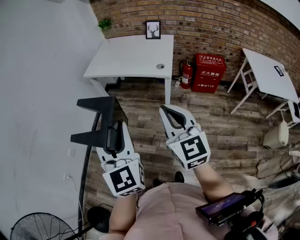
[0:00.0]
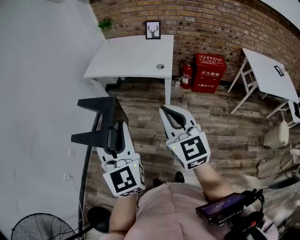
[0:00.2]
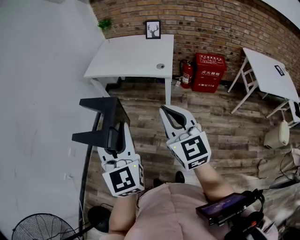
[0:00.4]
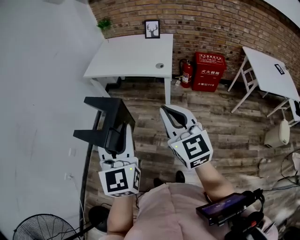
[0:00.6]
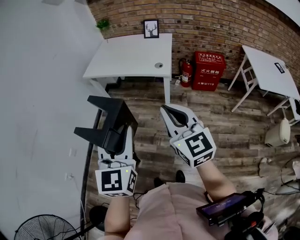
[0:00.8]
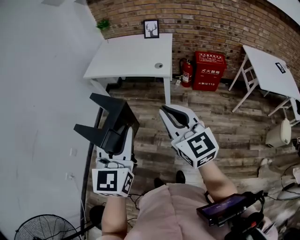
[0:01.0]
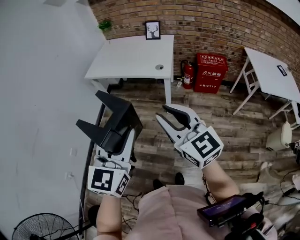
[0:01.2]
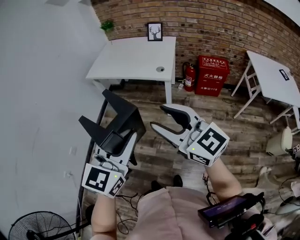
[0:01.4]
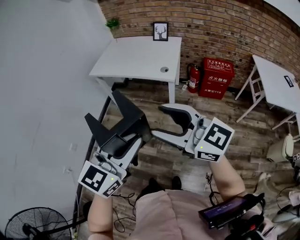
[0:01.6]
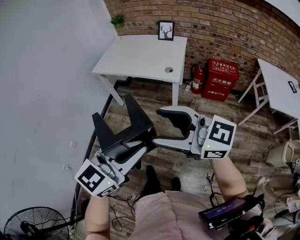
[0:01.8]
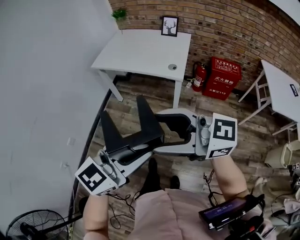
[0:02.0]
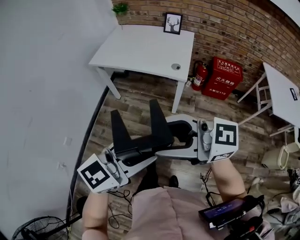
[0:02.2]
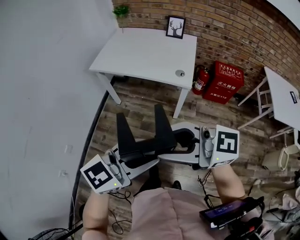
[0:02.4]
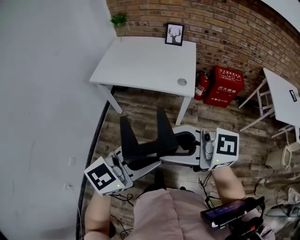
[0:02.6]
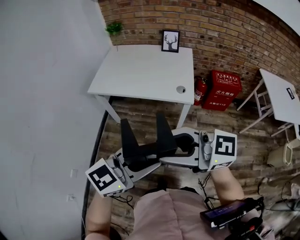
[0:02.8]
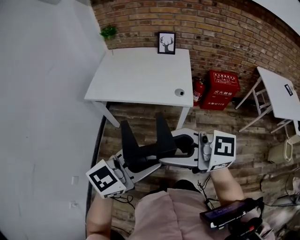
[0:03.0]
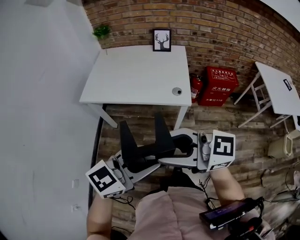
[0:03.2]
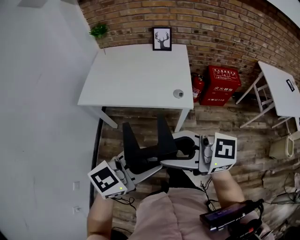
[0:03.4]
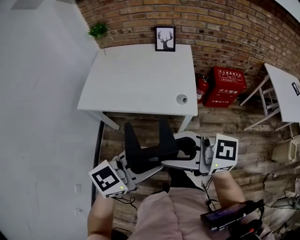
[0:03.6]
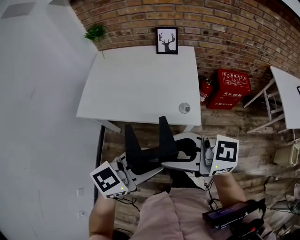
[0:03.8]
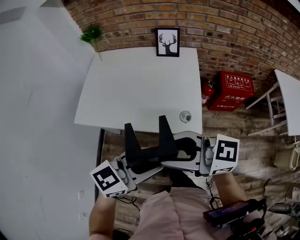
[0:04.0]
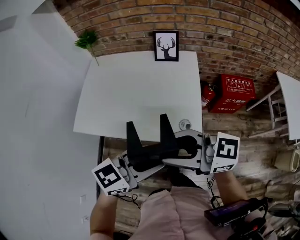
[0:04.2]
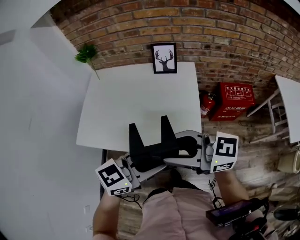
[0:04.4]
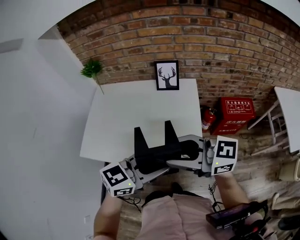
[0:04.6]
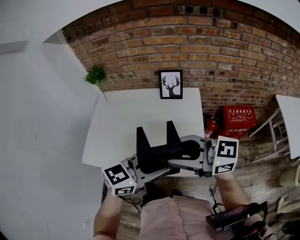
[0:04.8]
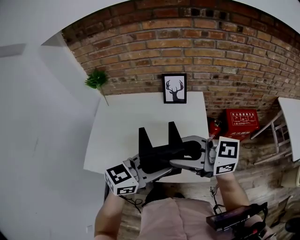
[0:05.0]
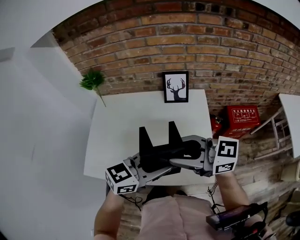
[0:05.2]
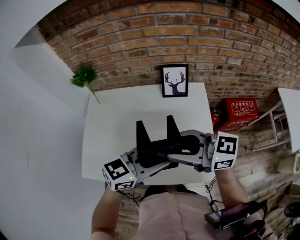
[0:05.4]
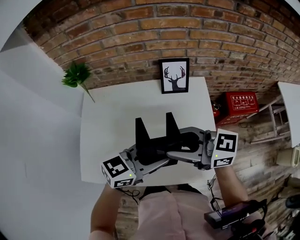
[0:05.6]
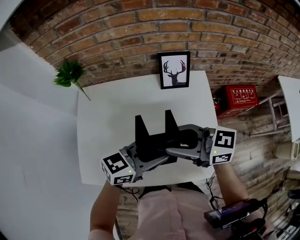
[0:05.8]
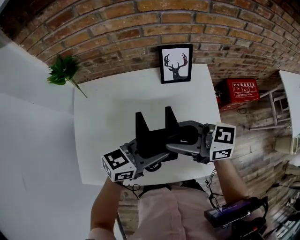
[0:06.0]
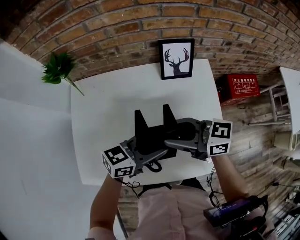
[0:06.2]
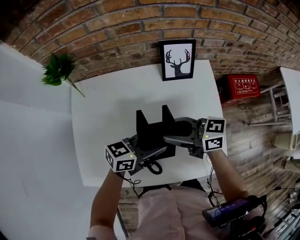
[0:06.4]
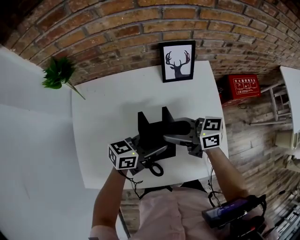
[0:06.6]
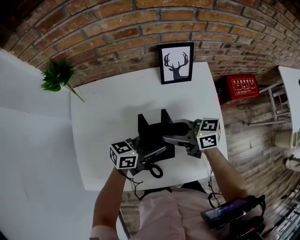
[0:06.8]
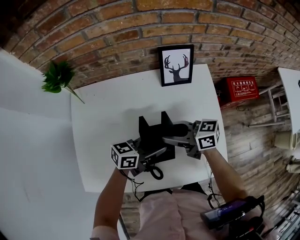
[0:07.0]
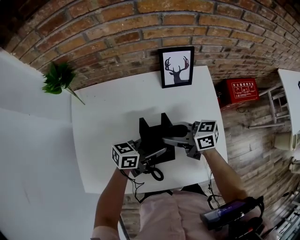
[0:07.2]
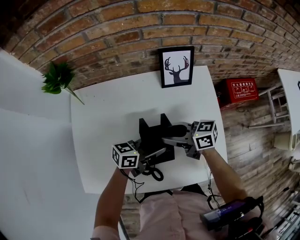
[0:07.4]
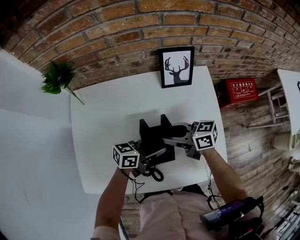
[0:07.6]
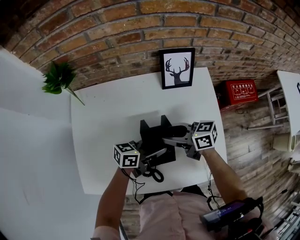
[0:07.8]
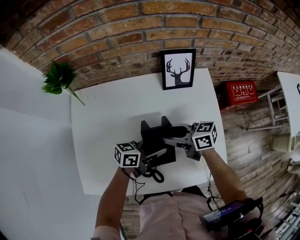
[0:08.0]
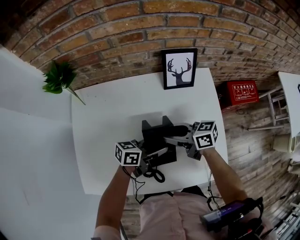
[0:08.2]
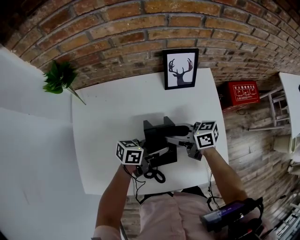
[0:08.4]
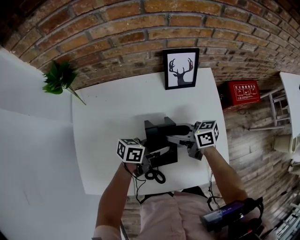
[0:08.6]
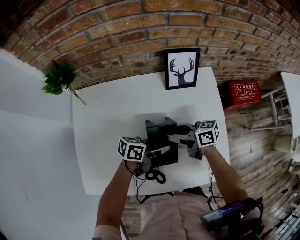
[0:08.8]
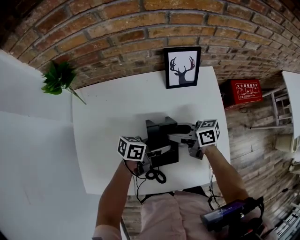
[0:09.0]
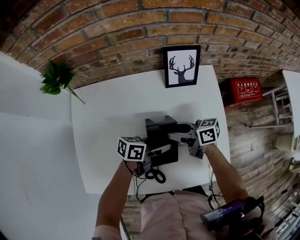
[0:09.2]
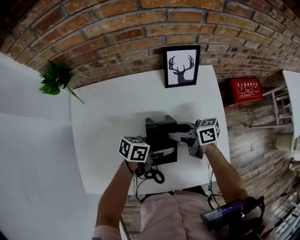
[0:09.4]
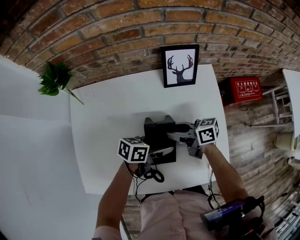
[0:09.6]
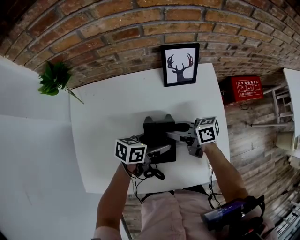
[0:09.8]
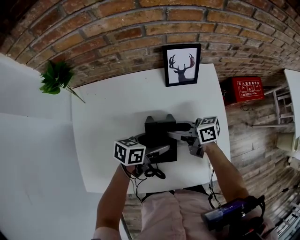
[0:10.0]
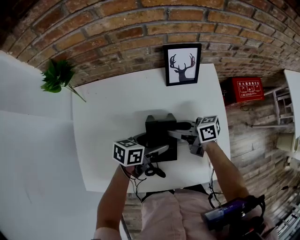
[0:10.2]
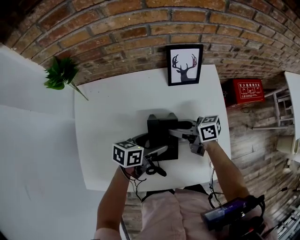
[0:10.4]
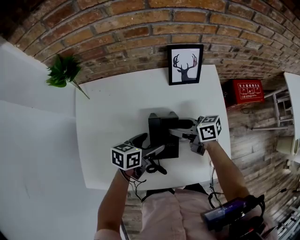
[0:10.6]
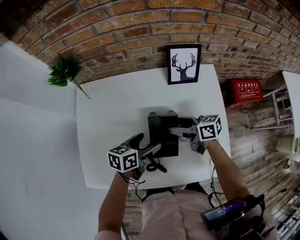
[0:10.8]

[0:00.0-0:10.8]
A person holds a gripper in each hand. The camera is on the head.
0:00.0 to 0:01.6: The right gripper changes place by some 5 cm, swivels about 40 degrees, and opens; the left gripper goes approximately 10 cm to the right, and rotates approximately 40 degrees.
0:01.6 to 0:03.0: The left gripper changes place by some 20 cm, and changes its angle by approximately 30 degrees, while the right gripper moves about 25 cm.
0:03.0 to 0:04.6: The right gripper moves approximately 40 cm; the left gripper changes place by roughly 40 cm.
0:04.6 to 0:06.2: The right gripper changes place by approximately 30 cm, and rotates some 20 degrees; the left gripper shifts by roughly 30 cm, and rotates approximately 20 degrees.
0:06.2 to 0:07.8: Both grippers travel together downward, approximately 10 cm.
0:07.8 to 0:09.2: The grippers stay close to where they were, moving slightly.
0:09.2 to 0:10.8: The left gripper changes place by some 10 cm, turns by some 30 degrees, and opens.

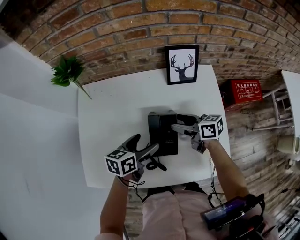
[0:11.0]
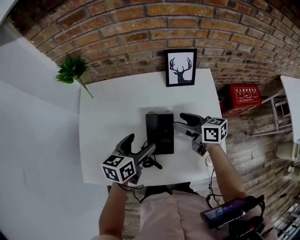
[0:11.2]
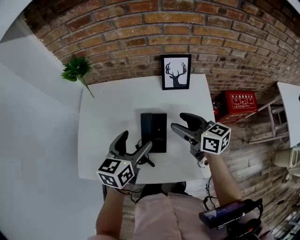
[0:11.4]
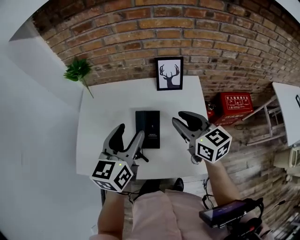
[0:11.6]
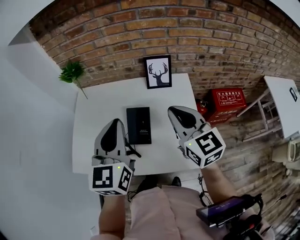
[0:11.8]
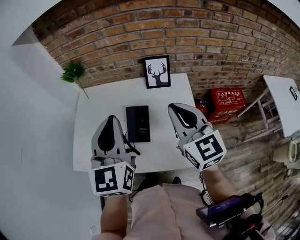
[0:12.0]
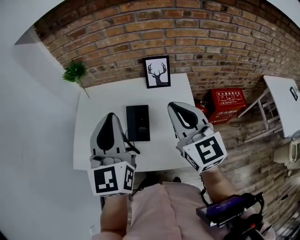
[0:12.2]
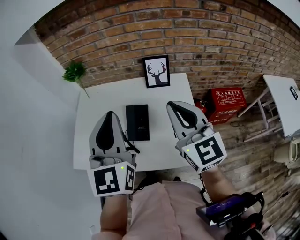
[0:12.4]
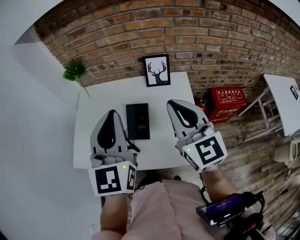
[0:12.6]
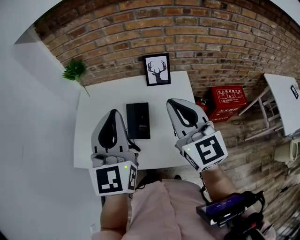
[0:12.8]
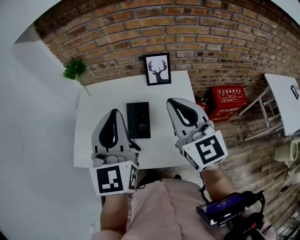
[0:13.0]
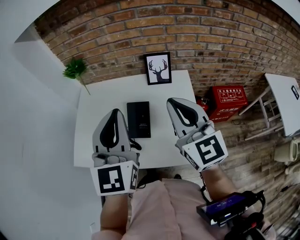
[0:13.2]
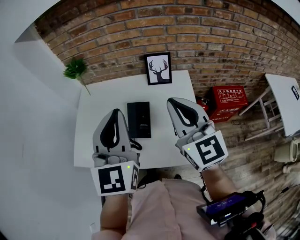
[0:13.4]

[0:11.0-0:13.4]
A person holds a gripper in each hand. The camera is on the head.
0:11.0 to 0:12.2: The right gripper travels upward and backward by some 35 cm, swivels some 60 degrees, and closes its fingers; the left gripper goes about 35 cm upward, tilts its fingers about 30 degrees upward, and closes its fingers.
0:12.2 to 0:13.4: There are only small adjustments of the grippers.

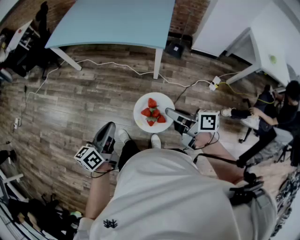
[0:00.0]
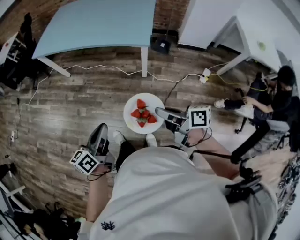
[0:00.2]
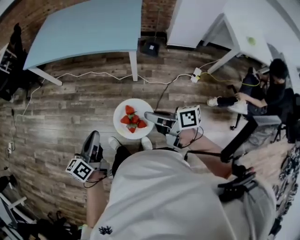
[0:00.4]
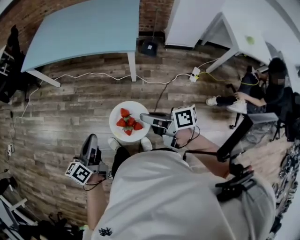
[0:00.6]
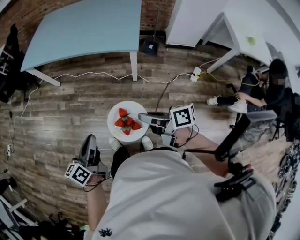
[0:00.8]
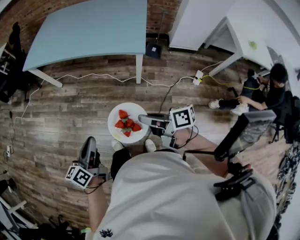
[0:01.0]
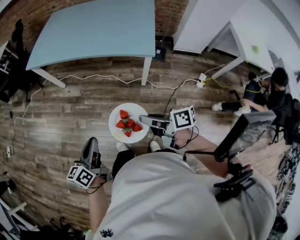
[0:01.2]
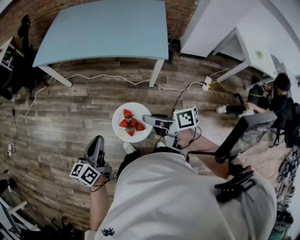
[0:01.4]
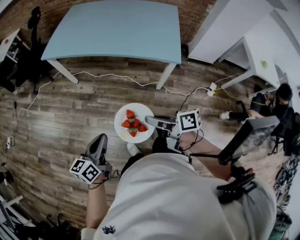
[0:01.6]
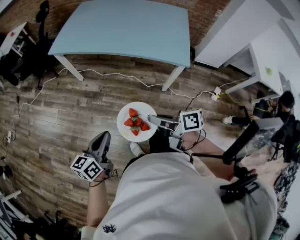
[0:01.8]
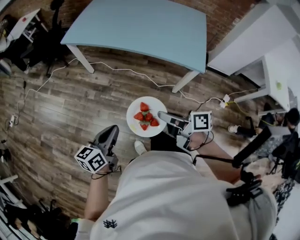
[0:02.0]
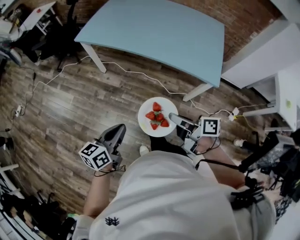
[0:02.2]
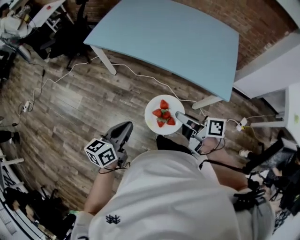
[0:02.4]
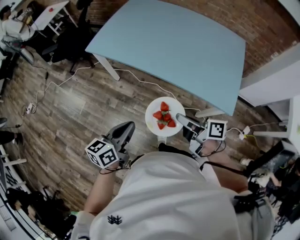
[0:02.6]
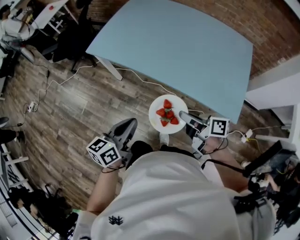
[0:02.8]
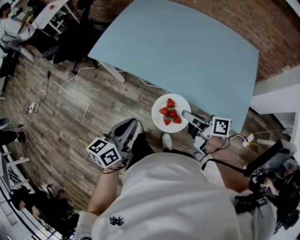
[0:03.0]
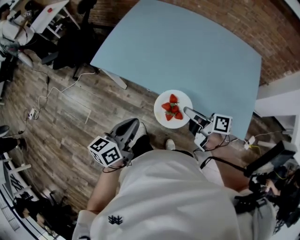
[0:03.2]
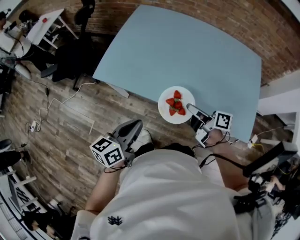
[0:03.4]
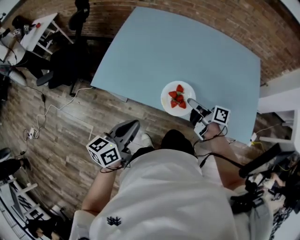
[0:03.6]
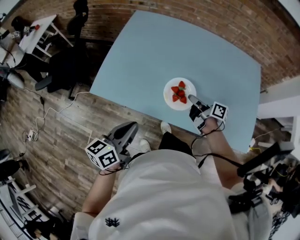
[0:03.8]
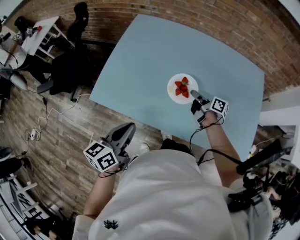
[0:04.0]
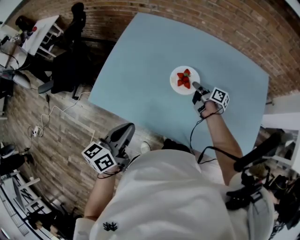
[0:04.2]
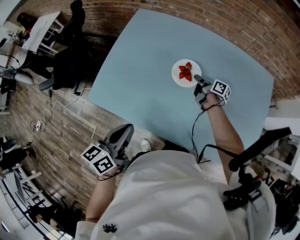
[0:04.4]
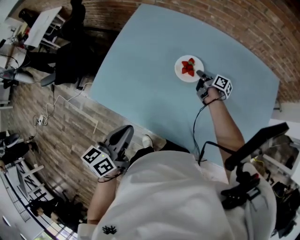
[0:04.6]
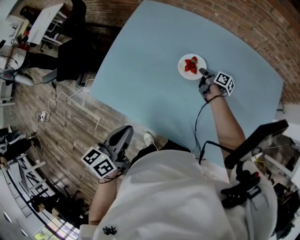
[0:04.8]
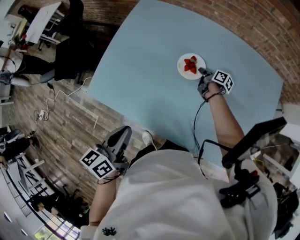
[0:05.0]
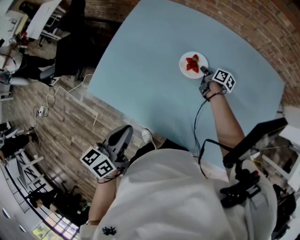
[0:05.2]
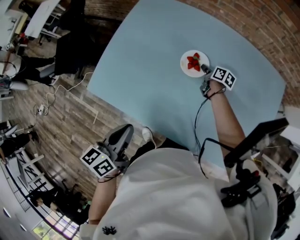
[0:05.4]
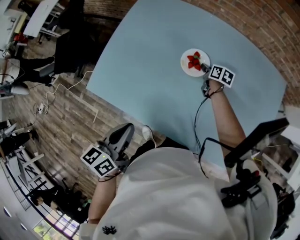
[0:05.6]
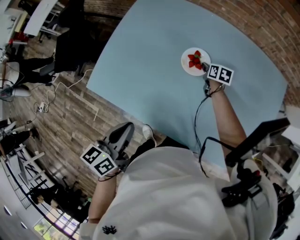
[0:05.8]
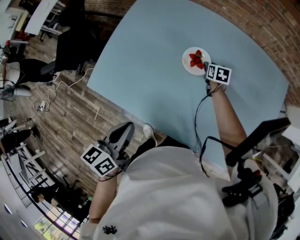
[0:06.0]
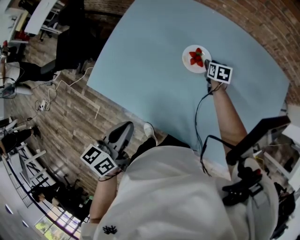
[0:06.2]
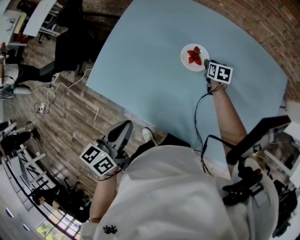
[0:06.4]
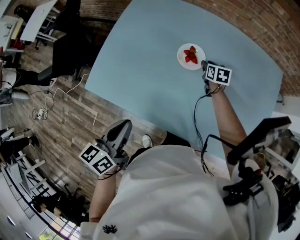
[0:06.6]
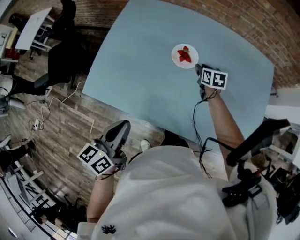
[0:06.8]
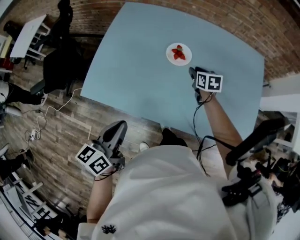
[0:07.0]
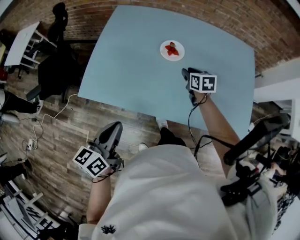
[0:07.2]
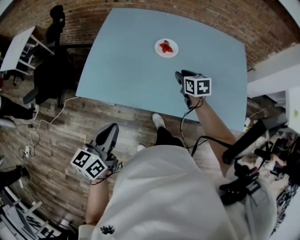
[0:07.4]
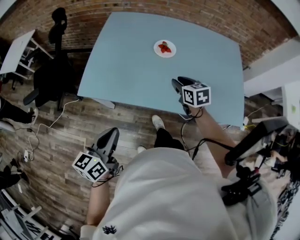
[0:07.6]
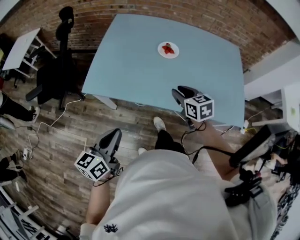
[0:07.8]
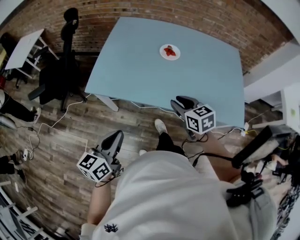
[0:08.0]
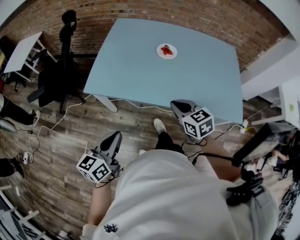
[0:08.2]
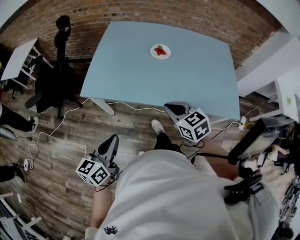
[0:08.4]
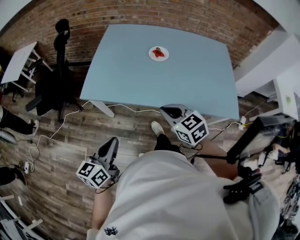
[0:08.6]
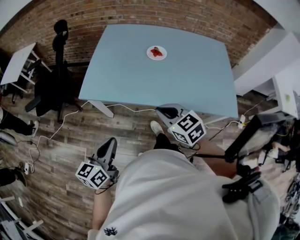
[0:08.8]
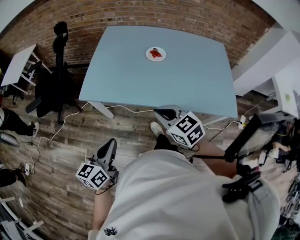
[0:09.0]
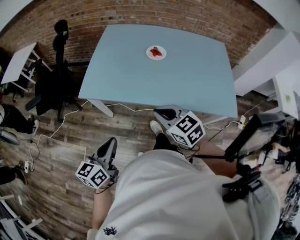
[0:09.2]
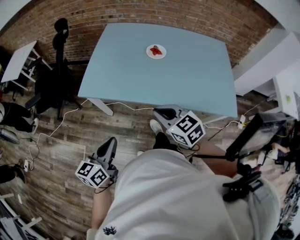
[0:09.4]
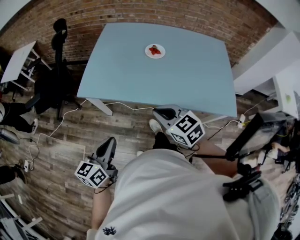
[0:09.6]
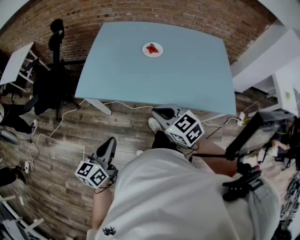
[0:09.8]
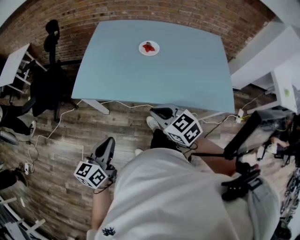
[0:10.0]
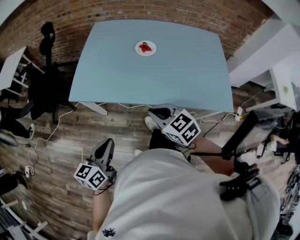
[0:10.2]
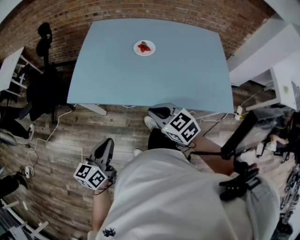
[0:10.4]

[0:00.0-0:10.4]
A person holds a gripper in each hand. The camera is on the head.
0:00.0 to 0:01.4: The two grippers go roughly 20 cm to the left and forward.
0:01.4 to 0:03.0: The grippers both shift forward by approximately 40 cm.
0:03.0 to 0:04.4: The right gripper heads forward, covering some 50 cm, and rotates roughly 30 degrees. The left gripper travels forward by roughly 30 cm.
0:04.4 to 0:06.0: The right gripper is displaced downward and forward by about 10 cm, rotates around the line of its fingers by approximately 50 degrees, counterclockwise from behind, and opens up.
0:06.0 to 0:07.4: The right gripper is displaced backward and upward by approximately 30 cm. The left gripper shifts some 15 cm backward and to the left.
0:07.4 to 0:09.0: The left gripper travels backward by approximately 15 cm; the right gripper heads backward, to the left and upward, covering about 35 cm, swivels about 30 degrees, and closes.
0:09.0 to 0:10.4: The left gripper shifts by some 5 cm; the right gripper changes place by roughly 5 cm.
